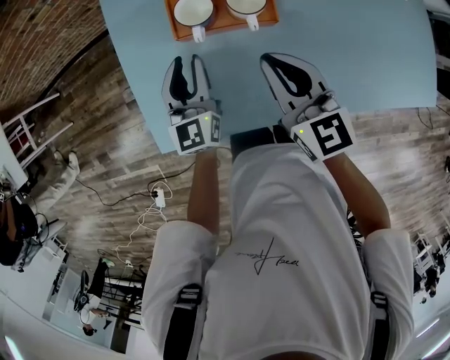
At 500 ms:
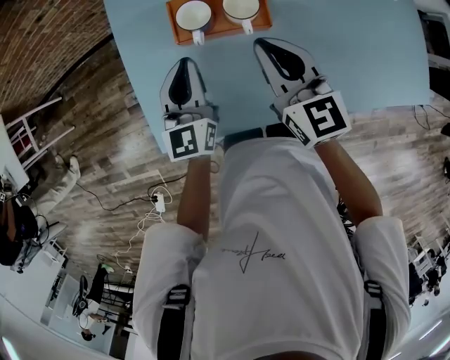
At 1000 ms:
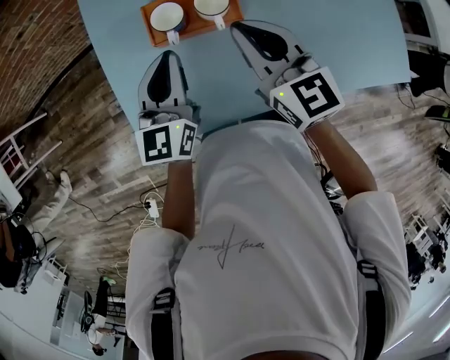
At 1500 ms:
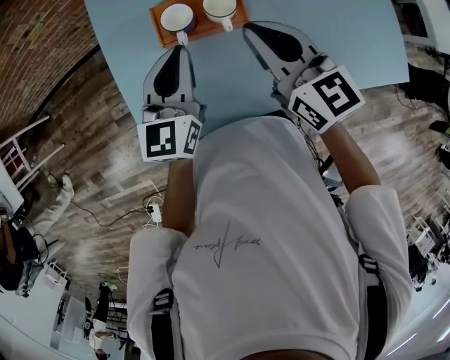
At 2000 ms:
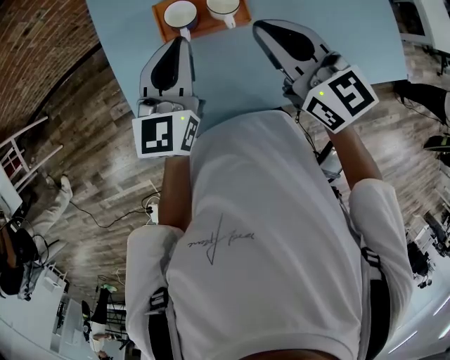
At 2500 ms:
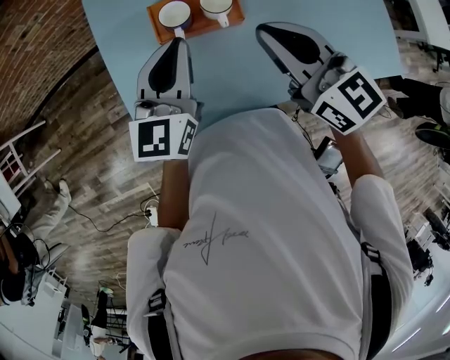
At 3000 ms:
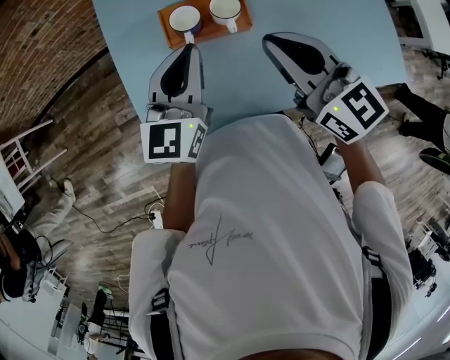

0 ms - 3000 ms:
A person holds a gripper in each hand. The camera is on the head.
0 ms - 1500 ms: The two grippers go roughly 10 cm upward. The left gripper closes its fingers.
1500 ms - 3000 ms: The right gripper ends up approximately 5 cm from where it was.

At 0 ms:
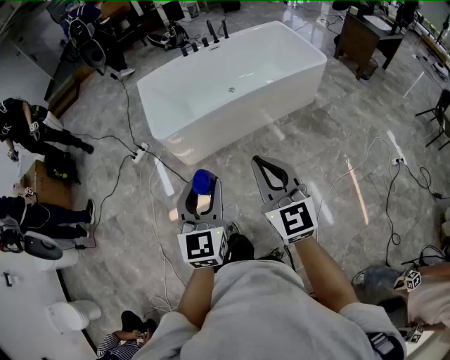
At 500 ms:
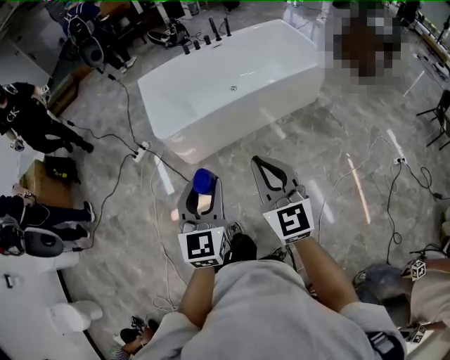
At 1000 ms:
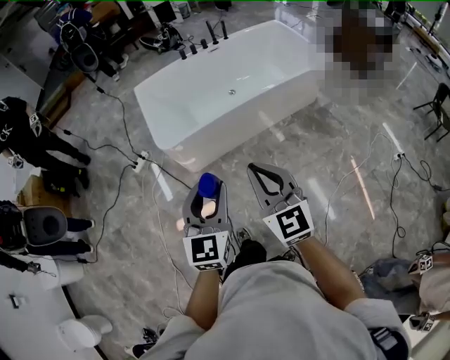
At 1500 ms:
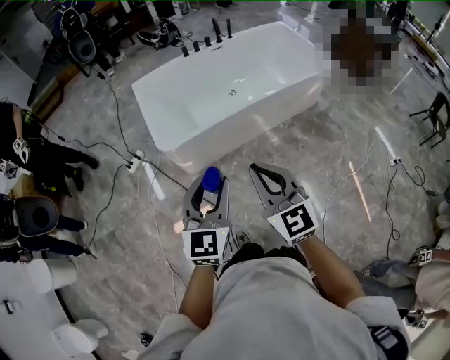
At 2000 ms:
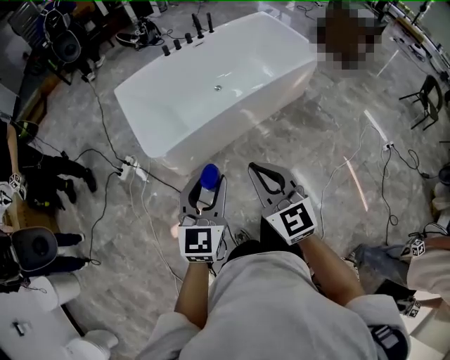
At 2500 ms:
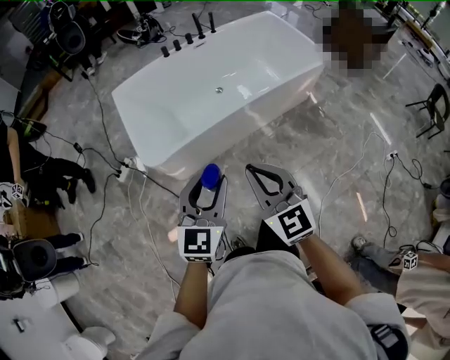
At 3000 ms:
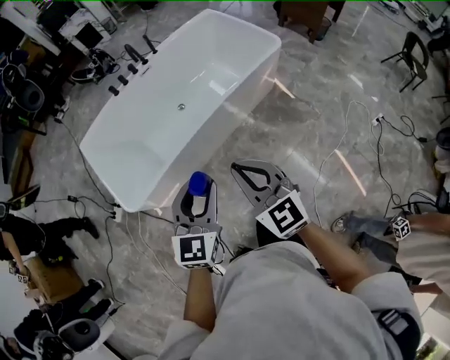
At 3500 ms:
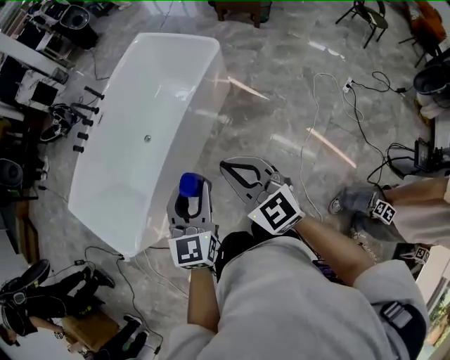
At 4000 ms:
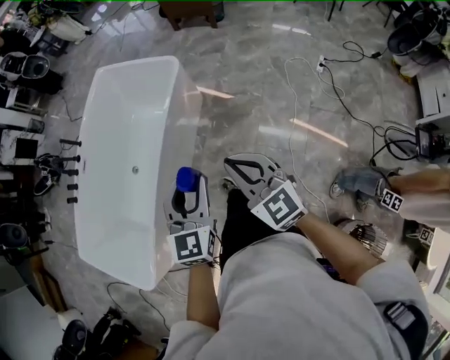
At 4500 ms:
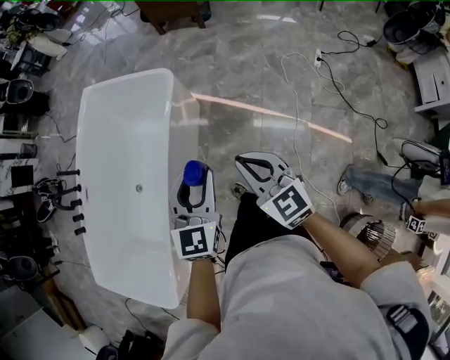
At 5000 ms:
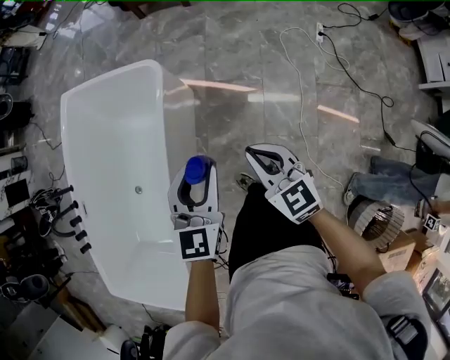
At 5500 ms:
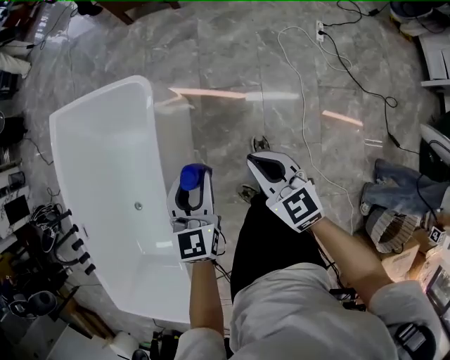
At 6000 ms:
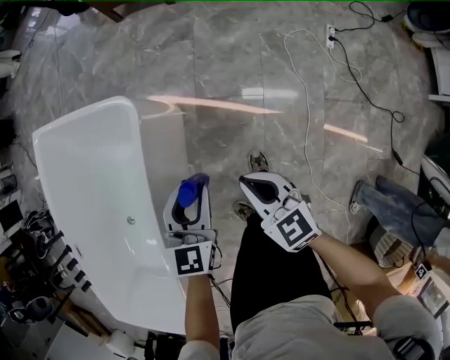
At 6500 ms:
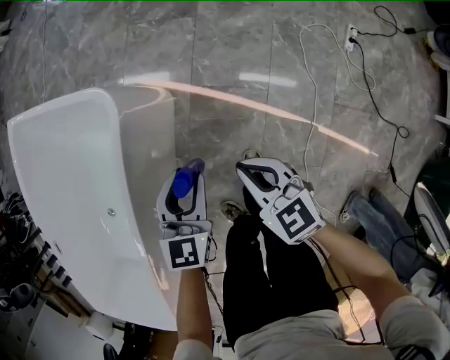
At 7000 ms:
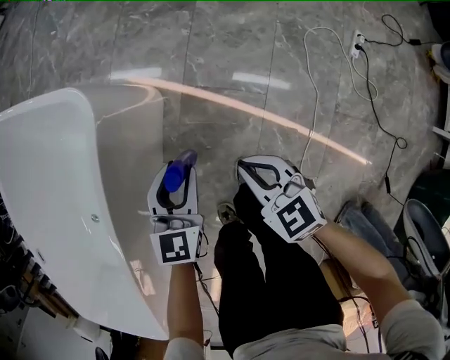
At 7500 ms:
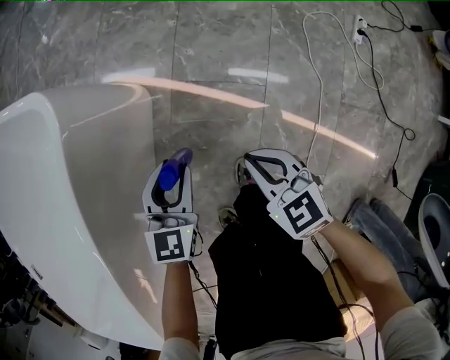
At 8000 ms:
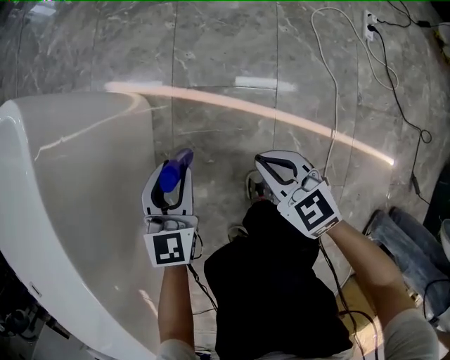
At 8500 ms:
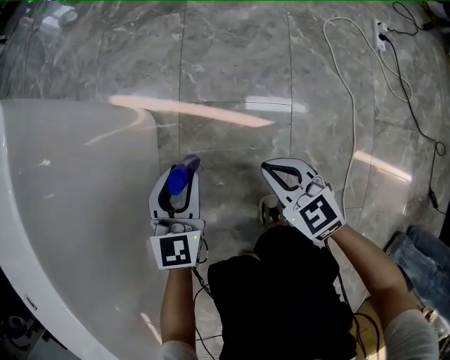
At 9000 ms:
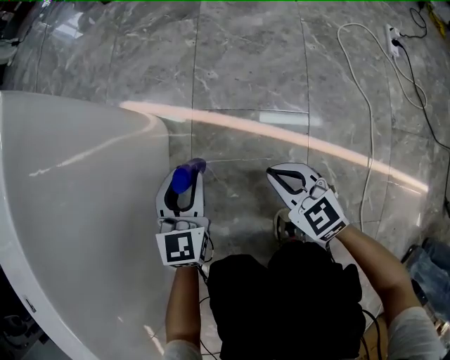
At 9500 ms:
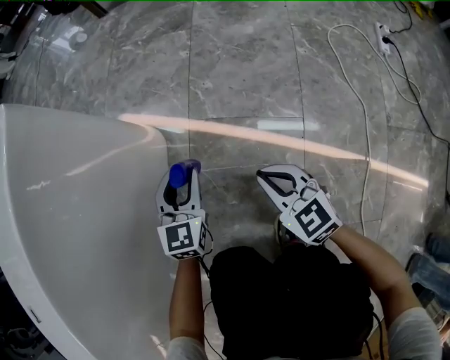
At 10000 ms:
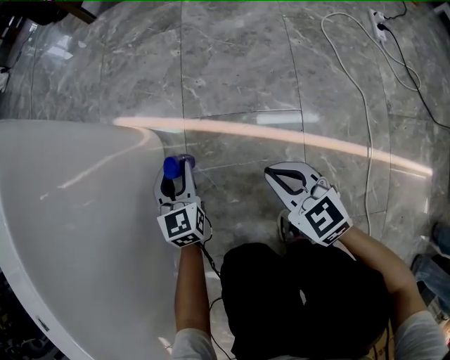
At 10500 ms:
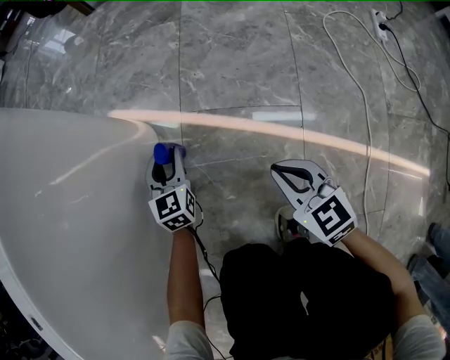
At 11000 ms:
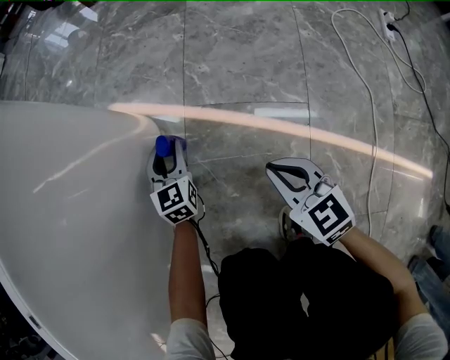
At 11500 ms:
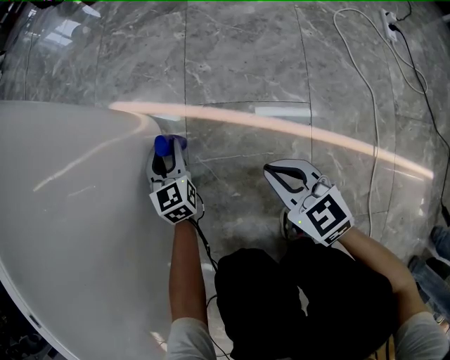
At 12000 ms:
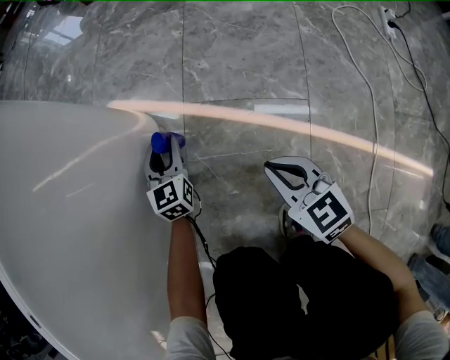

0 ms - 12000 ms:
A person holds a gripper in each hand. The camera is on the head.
0 ms - 2000 ms: The two grippers go some 20 cm forward and to the left.
2000 ms - 4000 ms: Both grippers are carried roughly 60 cm. The right gripper rotates some 30 degrees, while the left gripper rotates approximately 30 degrees.
4000 ms - 6000 ms: Both grippers move forward and downward, roughly 50 cm. The left gripper rotates some 20 degrees, while the right gripper turns by some 30 degrees.
6000 ms - 8000 ms: Both grippers move downward, some 40 cm.
8000 ms - 10000 ms: The left gripper shifts about 20 cm downward. Meanwhile the right gripper moves downward, roughly 15 cm.
10000 ms - 12000 ms: The left gripper travels downward by about 5 cm.

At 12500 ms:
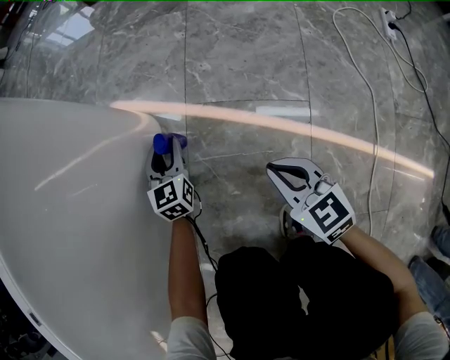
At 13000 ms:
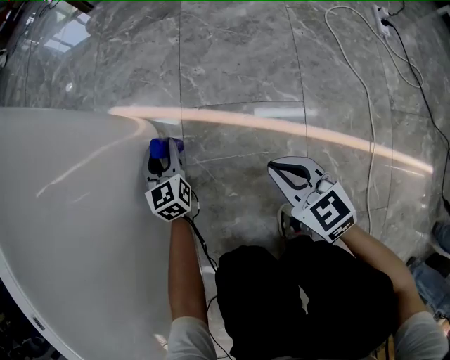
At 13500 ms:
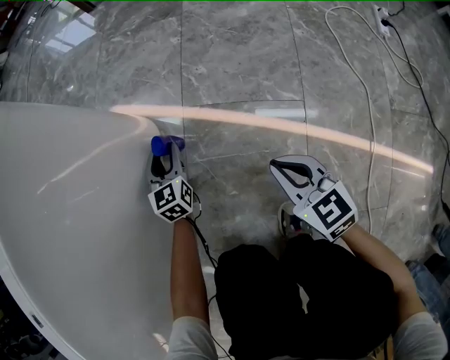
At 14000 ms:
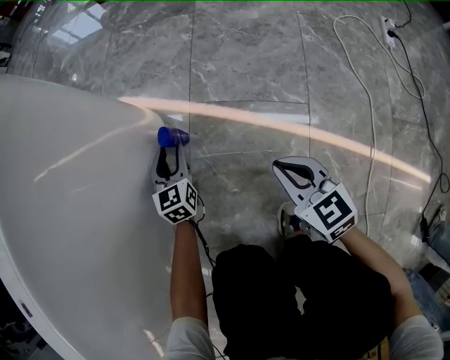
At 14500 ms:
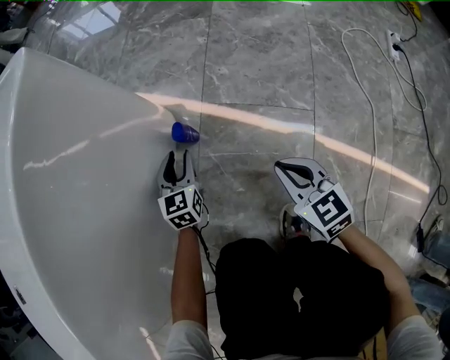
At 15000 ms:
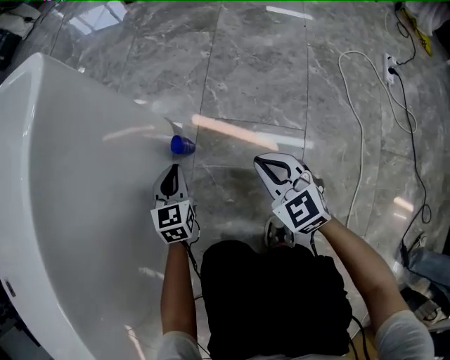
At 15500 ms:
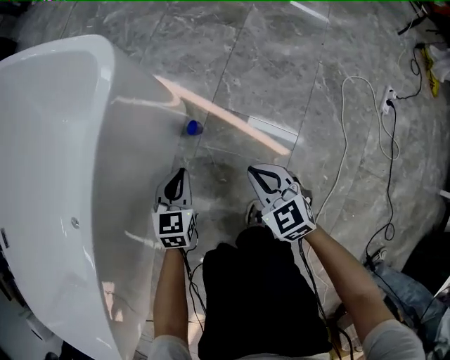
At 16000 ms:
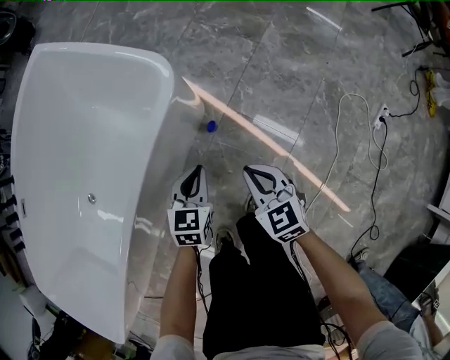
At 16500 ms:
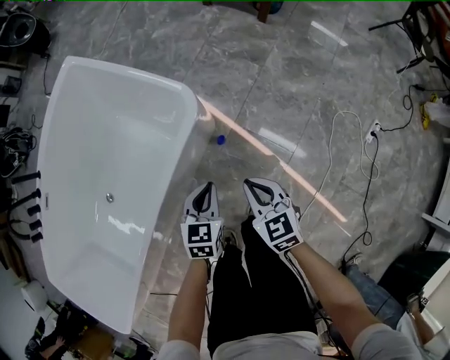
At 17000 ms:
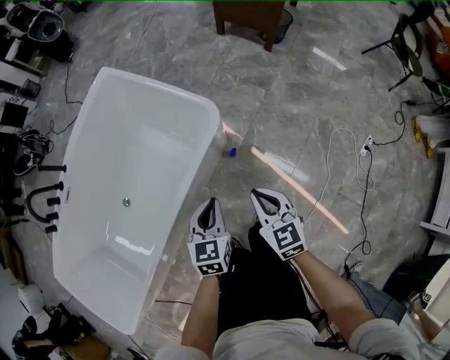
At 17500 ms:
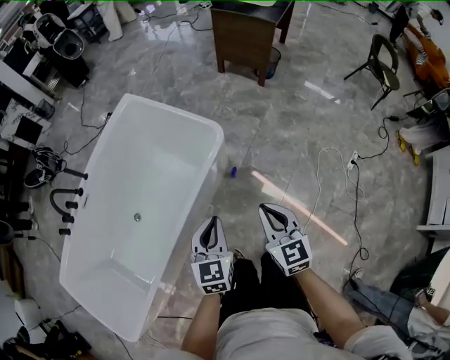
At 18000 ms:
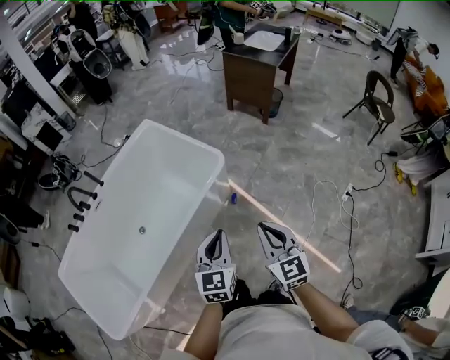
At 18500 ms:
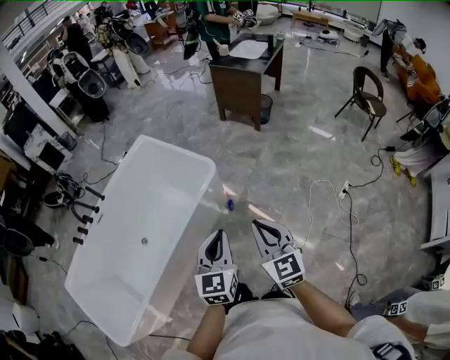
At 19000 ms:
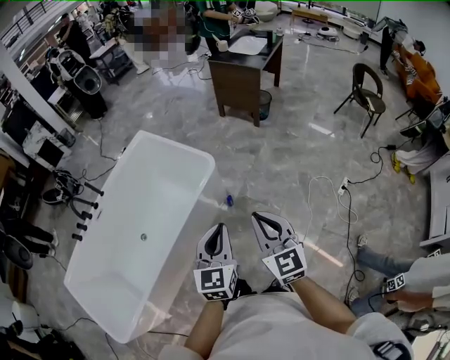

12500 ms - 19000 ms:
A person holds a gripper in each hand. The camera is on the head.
12500 ms - 14500 ms: The left gripper heads backward, covering about 5 cm.
14500 ms - 17000 ms: Both grippers travel together upward, about 60 cm. The left gripper closes up.
17000 ms - 19000 ms: The two grippers go about 40 cm upward and backward. The left gripper rotates some 20 degrees; the right gripper rotates some 20 degrees.

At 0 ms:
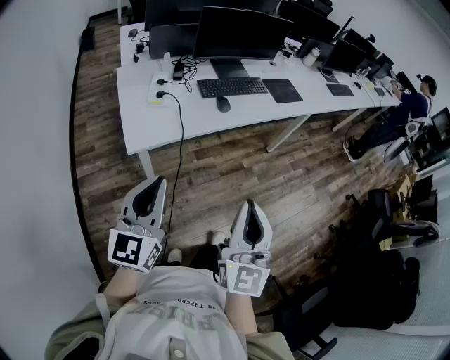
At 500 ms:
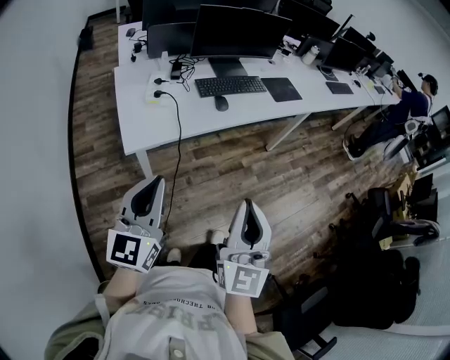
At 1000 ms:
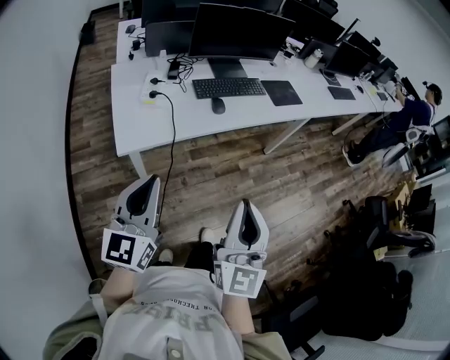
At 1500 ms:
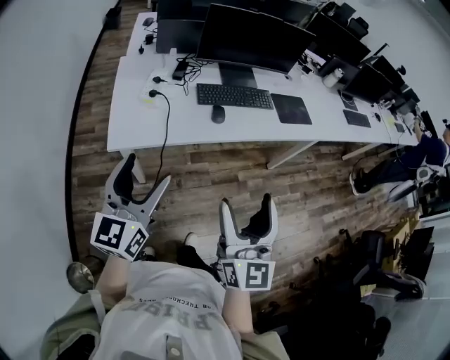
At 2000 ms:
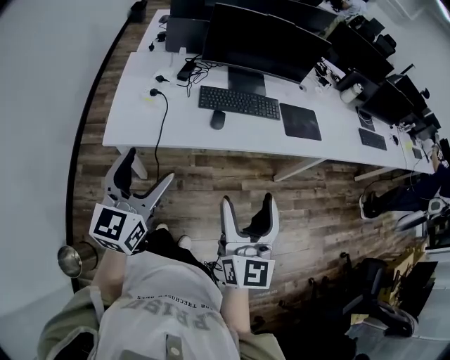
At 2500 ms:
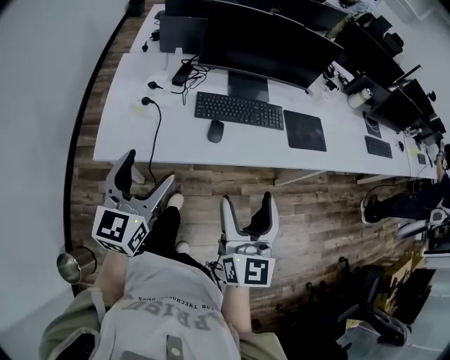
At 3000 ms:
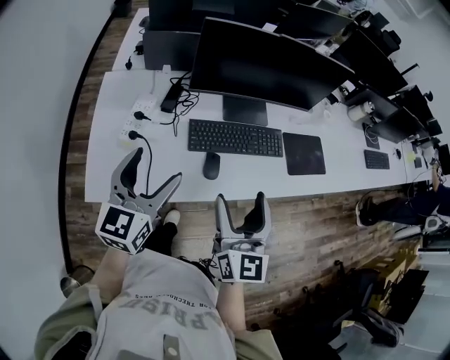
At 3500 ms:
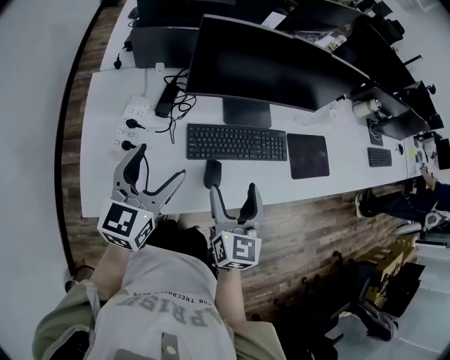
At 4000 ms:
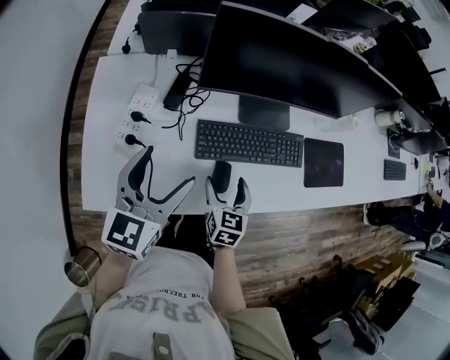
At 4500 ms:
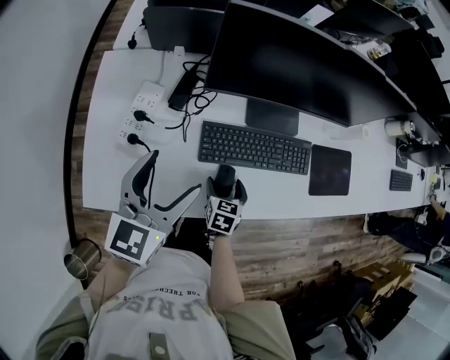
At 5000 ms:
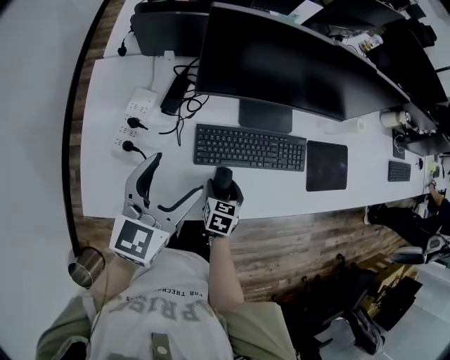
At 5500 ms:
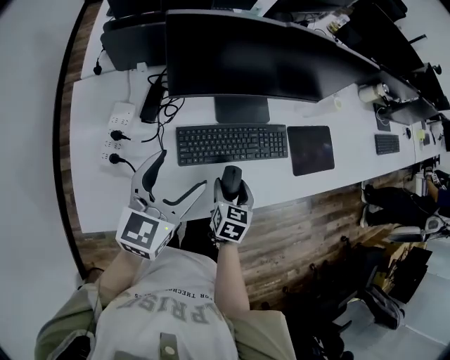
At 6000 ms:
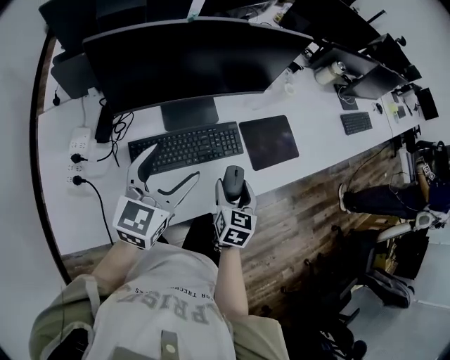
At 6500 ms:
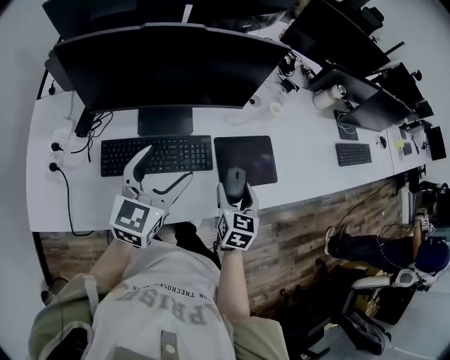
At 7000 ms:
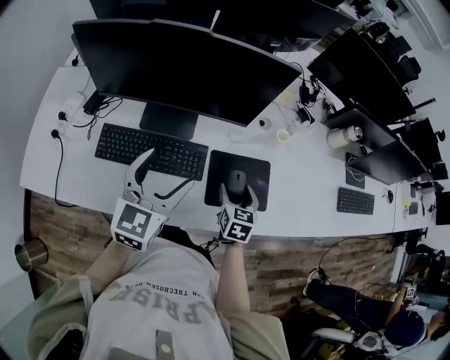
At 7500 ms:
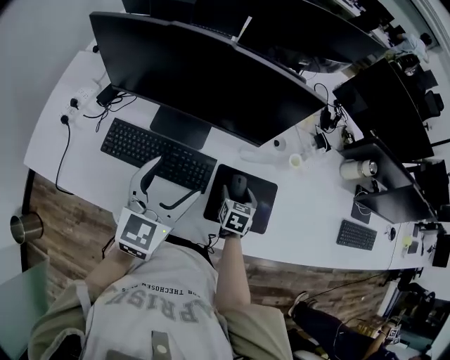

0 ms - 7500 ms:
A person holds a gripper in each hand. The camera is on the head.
0 ms - 2000 ms: Both grippers travel together forward and to the right, roughly 25 cm. The left gripper opens its fingers; the right gripper changes its angle by approximately 30 degrees, and opens up.
2000 ms - 4000 ms: The right gripper moves forward and downward, roughly 50 cm, and angles its fingers downward, by roughly 40 degrees, while the left gripper goes roughly 35 cm forward.
4000 ms - 5500 ms: The two grippers go some 5 cm to the right. The right gripper travels downward and back again, roughly 10 cm each way.
5500 ms - 7500 ms: The right gripper changes place by approximately 40 cm, and changes its angle by roughly 20 degrees. The left gripper moves some 30 cm, and swivels about 30 degrees.
